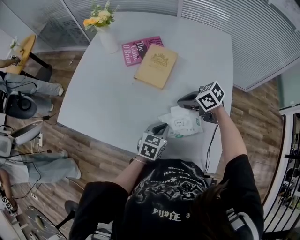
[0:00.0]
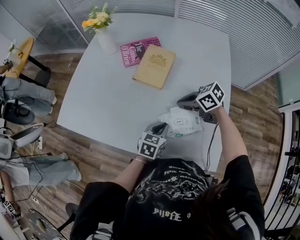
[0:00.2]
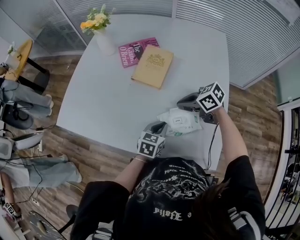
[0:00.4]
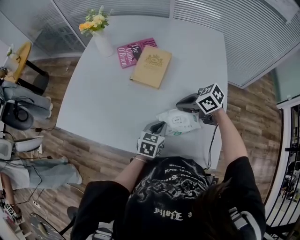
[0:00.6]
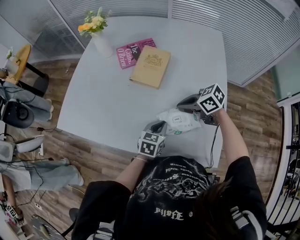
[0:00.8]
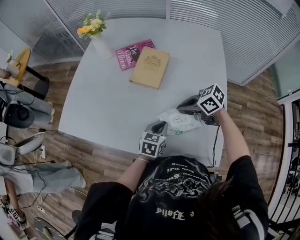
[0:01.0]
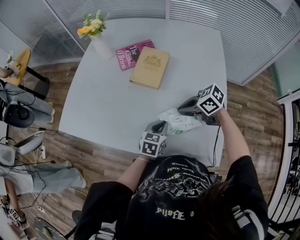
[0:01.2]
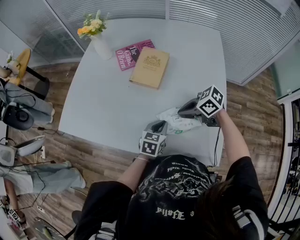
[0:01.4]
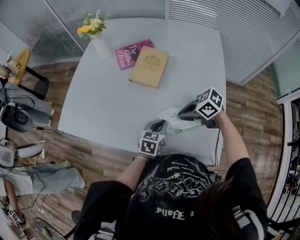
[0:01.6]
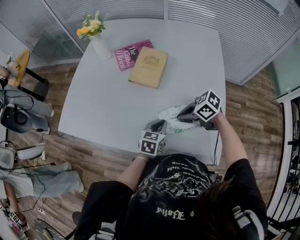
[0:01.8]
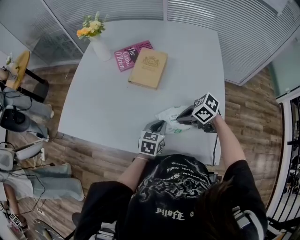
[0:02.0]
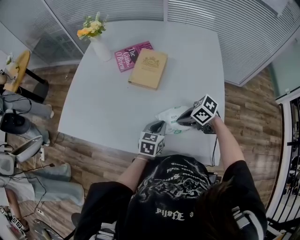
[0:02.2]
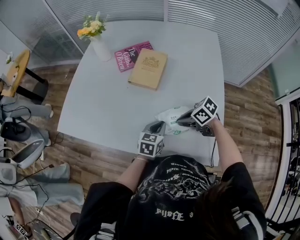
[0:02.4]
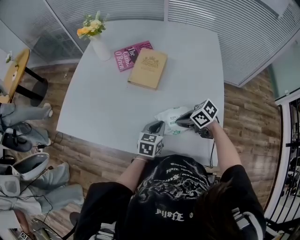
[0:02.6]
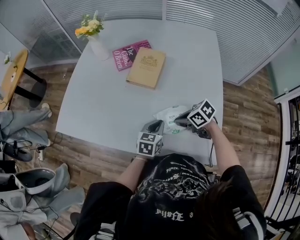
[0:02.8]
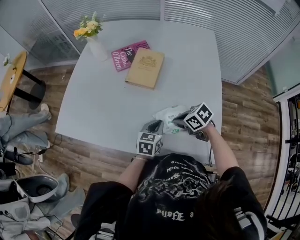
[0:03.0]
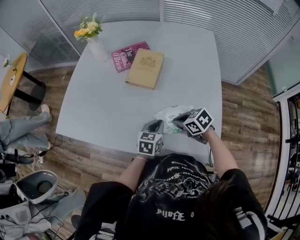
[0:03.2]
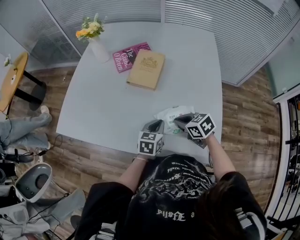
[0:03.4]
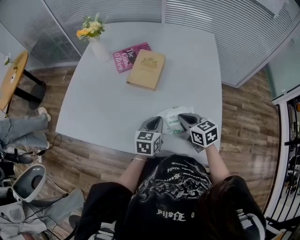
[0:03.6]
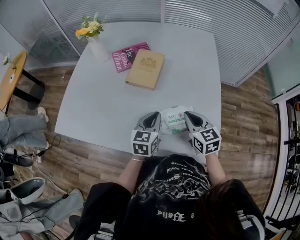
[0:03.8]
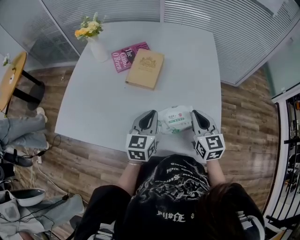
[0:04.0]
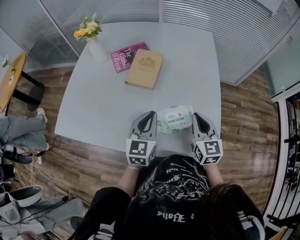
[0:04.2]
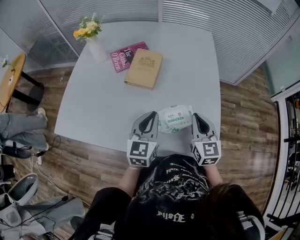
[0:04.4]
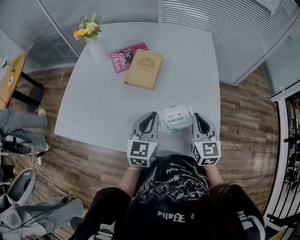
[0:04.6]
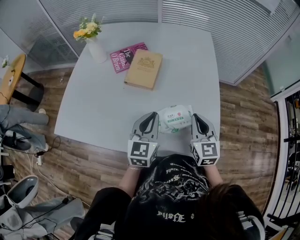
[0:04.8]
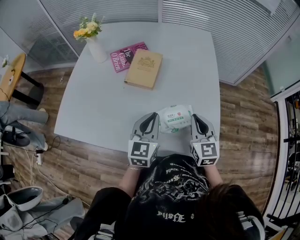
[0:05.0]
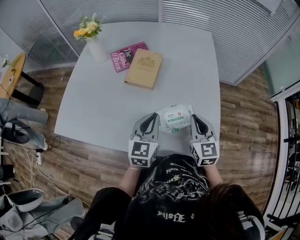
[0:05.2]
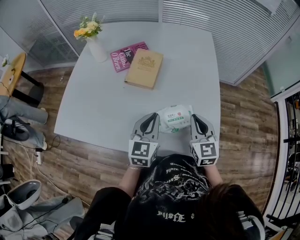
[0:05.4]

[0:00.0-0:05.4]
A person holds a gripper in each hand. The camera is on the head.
0:00.0 to 0:01.4: The right gripper ends up roughly 5 cm from where it was.
0:01.4 to 0:02.8: The right gripper shifts about 5 cm downward.
0:02.8 to 0:04.0: Both grippers move upward, some 10 cm. The right gripper turns by approximately 70 degrees.
0:04.0 to 0:05.4: The grippers move only a little.

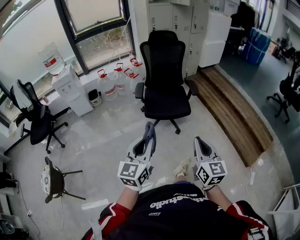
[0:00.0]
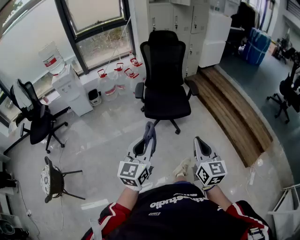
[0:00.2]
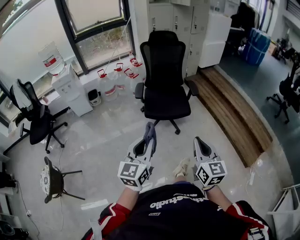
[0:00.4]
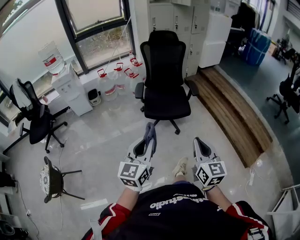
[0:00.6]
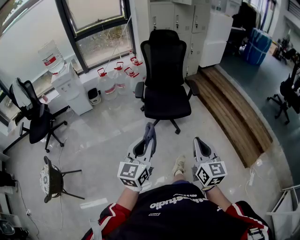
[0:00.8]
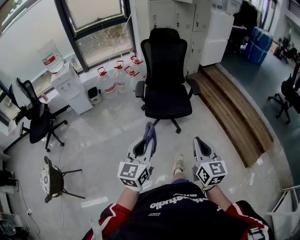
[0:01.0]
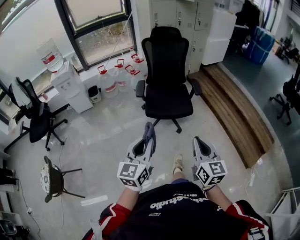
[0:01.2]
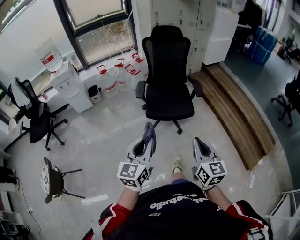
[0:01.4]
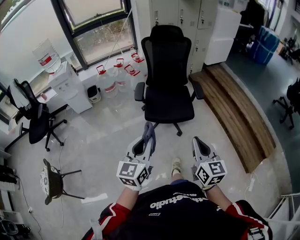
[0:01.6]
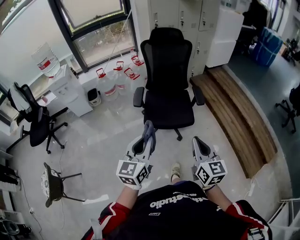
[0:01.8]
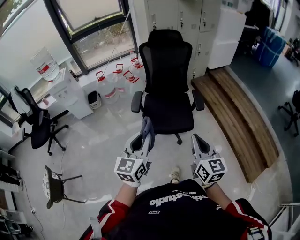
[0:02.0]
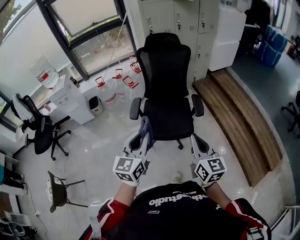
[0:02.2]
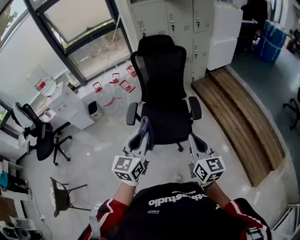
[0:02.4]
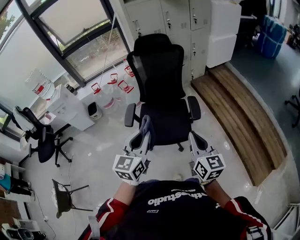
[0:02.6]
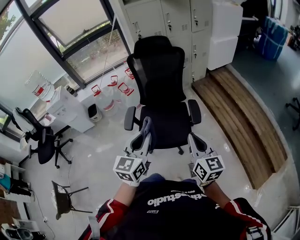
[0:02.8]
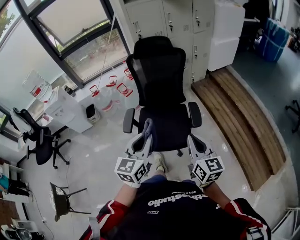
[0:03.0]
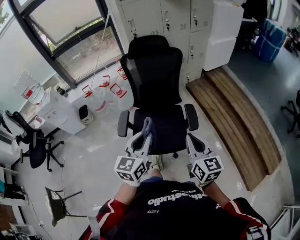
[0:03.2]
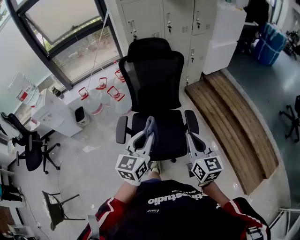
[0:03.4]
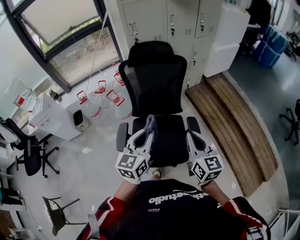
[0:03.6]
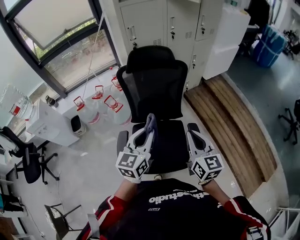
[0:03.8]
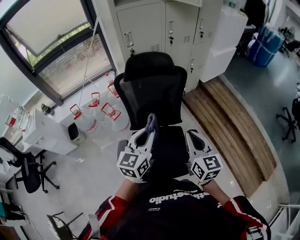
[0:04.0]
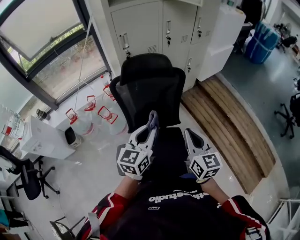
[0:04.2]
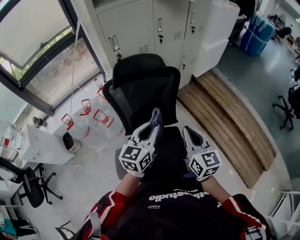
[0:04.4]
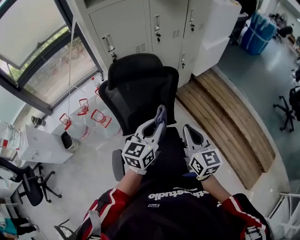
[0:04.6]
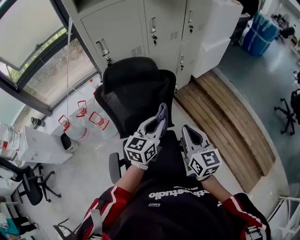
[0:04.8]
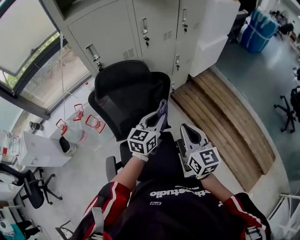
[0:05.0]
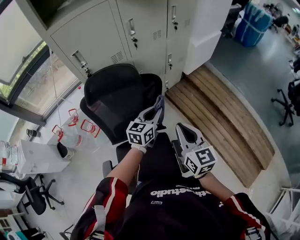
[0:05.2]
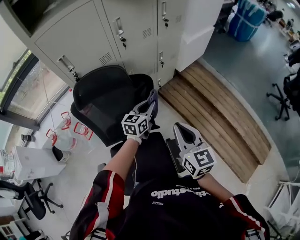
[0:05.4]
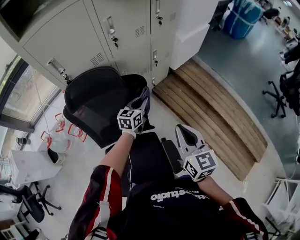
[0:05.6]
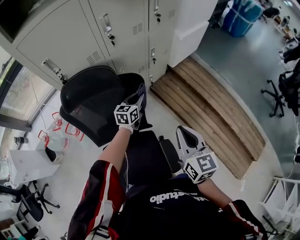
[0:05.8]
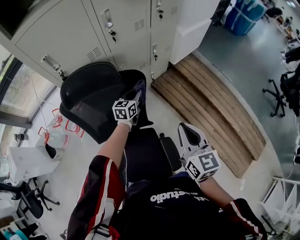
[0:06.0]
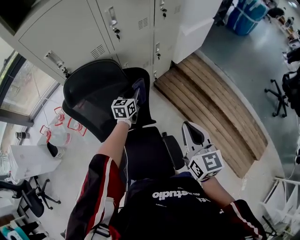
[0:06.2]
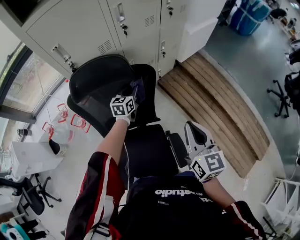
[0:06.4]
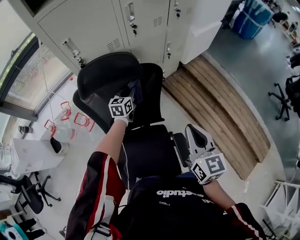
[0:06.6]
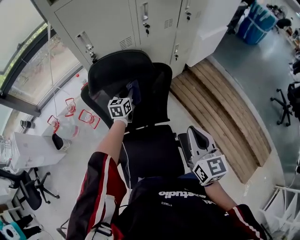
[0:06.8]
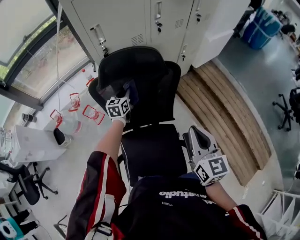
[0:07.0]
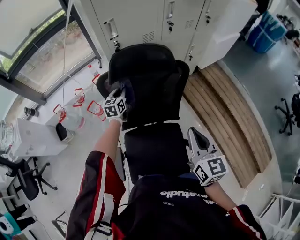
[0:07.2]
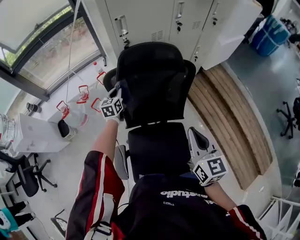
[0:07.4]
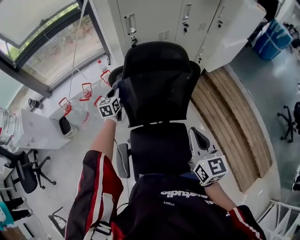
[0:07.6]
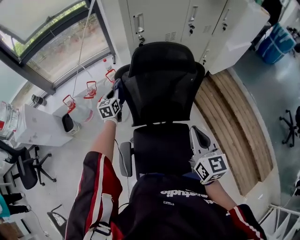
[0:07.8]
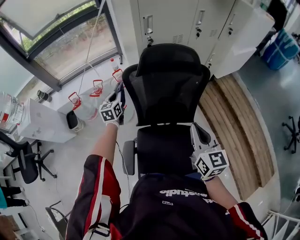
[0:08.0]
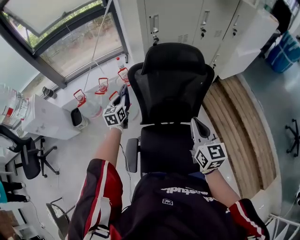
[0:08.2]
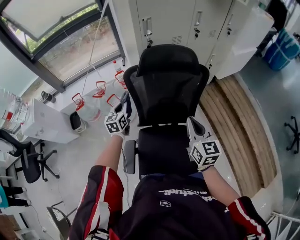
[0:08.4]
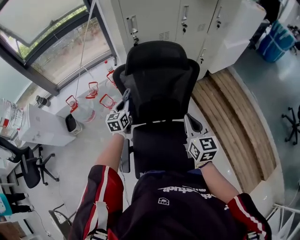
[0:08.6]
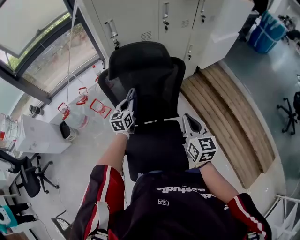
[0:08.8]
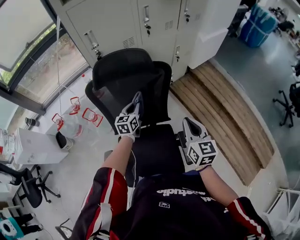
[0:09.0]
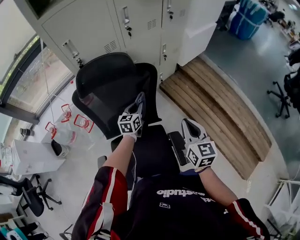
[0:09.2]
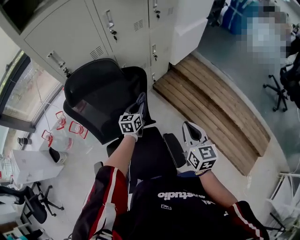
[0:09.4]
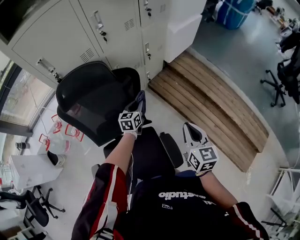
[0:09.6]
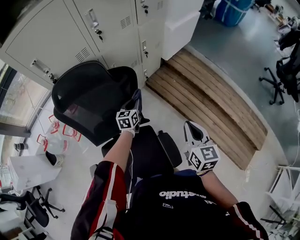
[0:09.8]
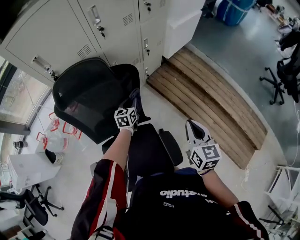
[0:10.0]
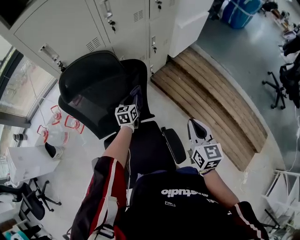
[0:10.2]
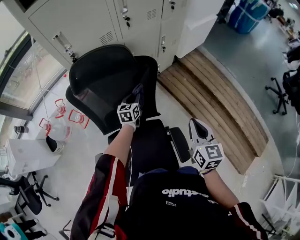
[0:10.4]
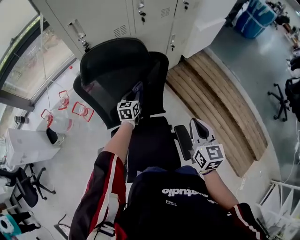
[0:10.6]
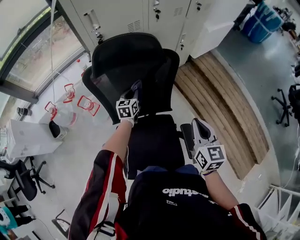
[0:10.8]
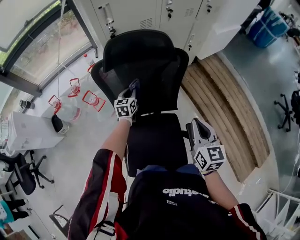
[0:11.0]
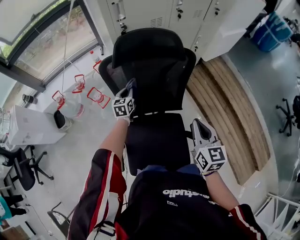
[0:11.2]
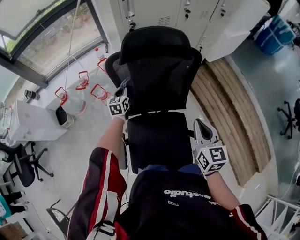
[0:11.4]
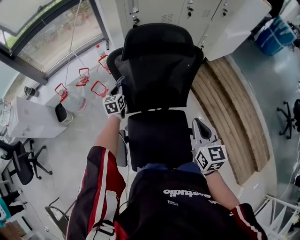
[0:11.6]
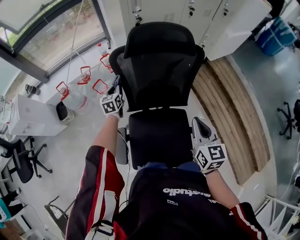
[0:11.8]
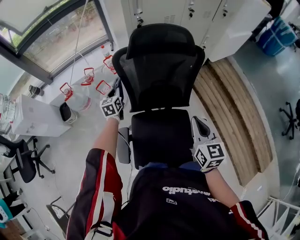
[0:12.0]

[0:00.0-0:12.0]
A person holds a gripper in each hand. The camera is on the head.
0:00.0 to 0:01.6: Both grippers travel together forward, approximately 15 cm.
0:01.6 to 0:03.0: The grippers both shift forward and to the right by approximately 40 cm.
0:03.0 to 0:04.4: Both grippers are carried forward, some 50 cm.
0:04.4 to 0:06.0: The left gripper heads forward and downward, covering roughly 50 cm, while the right gripper shifts about 25 cm forward and to the right.
0:06.0 to 0:07.6: The right gripper moves to the left and backward, some 25 cm. The left gripper goes some 50 cm to the left, and turns by approximately 30 degrees.
0:07.6 to 0:09.0: The right gripper goes about 15 cm to the right. The left gripper heads to the right, covering approximately 25 cm.
0:09.0 to 0:10.4: The left gripper is displaced forward, to the right and downward by approximately 15 cm, while the right gripper goes approximately 10 cm to the right.
0:10.4 to 0:12.0: The right gripper shifts roughly 25 cm to the left; the left gripper travels to the left by approximately 40 cm, and turns by about 20 degrees.

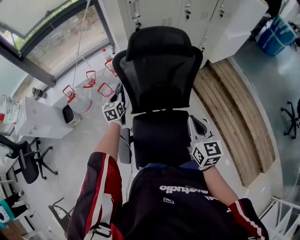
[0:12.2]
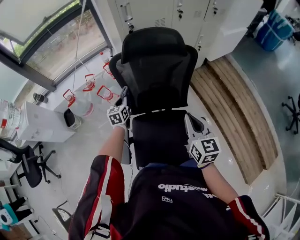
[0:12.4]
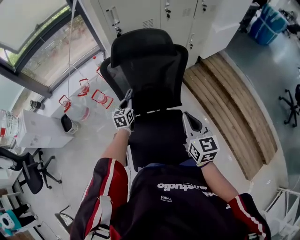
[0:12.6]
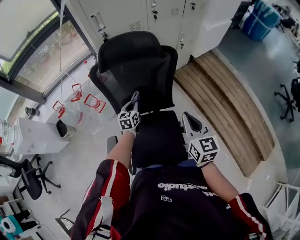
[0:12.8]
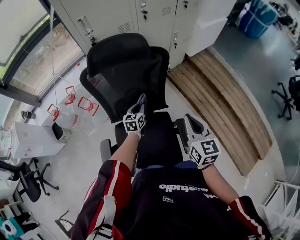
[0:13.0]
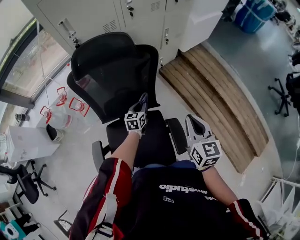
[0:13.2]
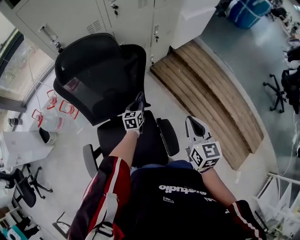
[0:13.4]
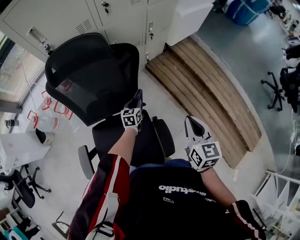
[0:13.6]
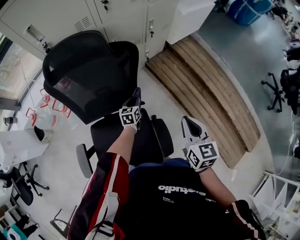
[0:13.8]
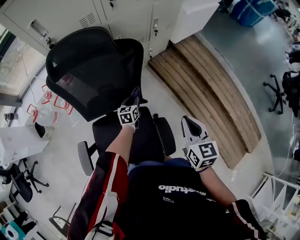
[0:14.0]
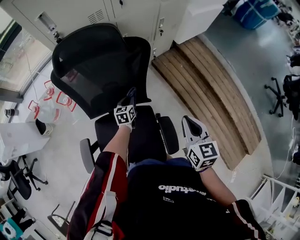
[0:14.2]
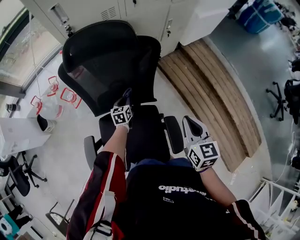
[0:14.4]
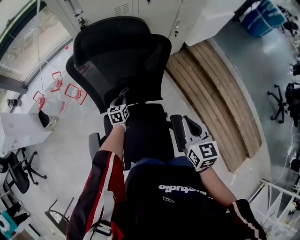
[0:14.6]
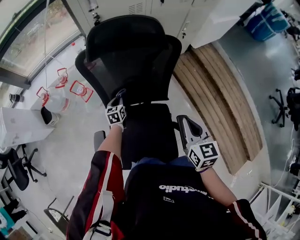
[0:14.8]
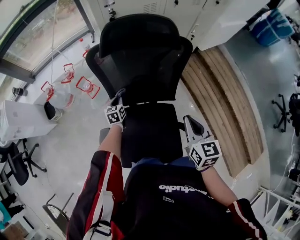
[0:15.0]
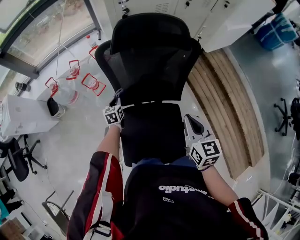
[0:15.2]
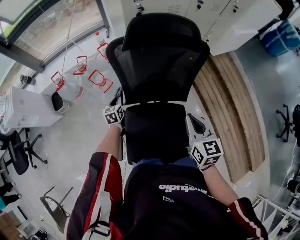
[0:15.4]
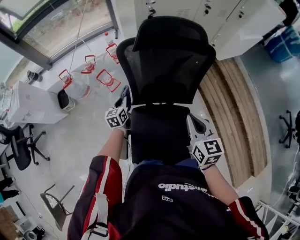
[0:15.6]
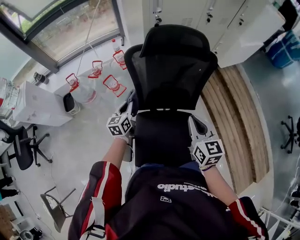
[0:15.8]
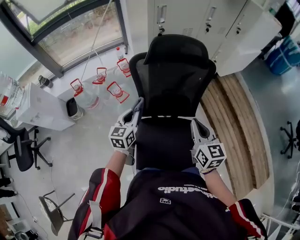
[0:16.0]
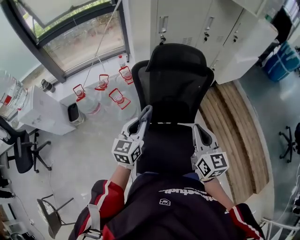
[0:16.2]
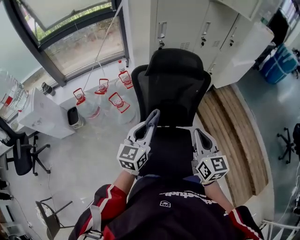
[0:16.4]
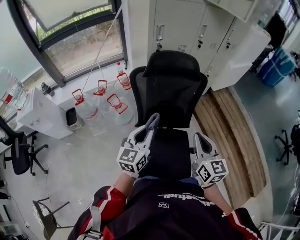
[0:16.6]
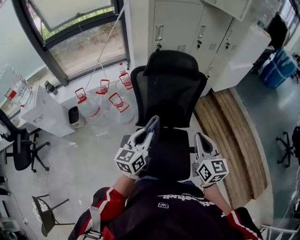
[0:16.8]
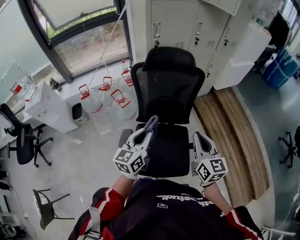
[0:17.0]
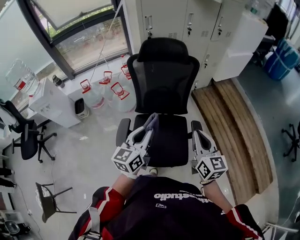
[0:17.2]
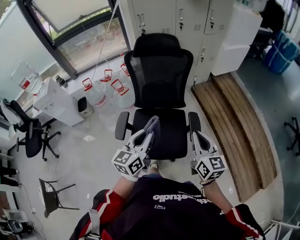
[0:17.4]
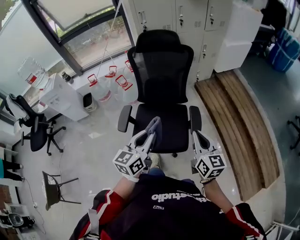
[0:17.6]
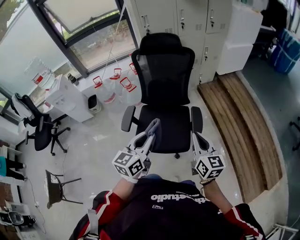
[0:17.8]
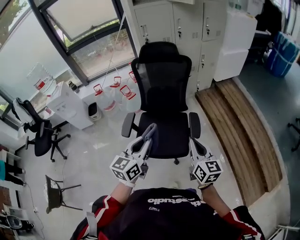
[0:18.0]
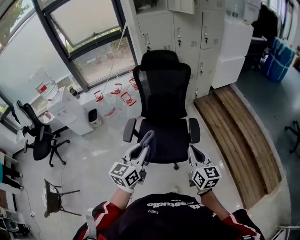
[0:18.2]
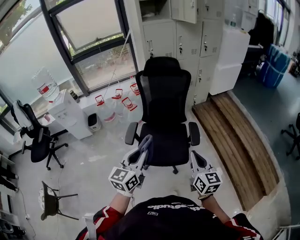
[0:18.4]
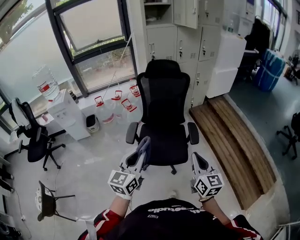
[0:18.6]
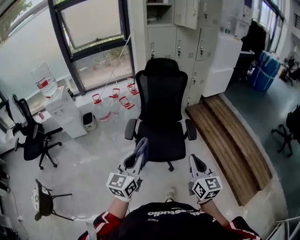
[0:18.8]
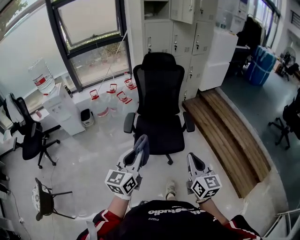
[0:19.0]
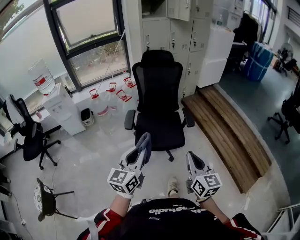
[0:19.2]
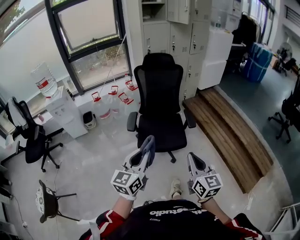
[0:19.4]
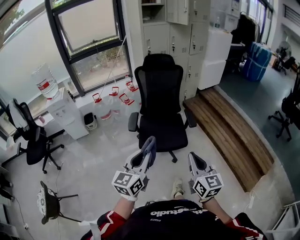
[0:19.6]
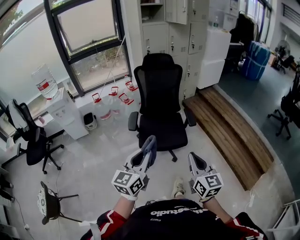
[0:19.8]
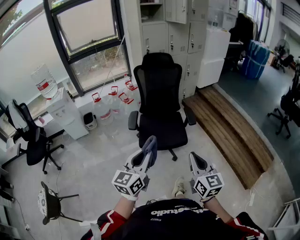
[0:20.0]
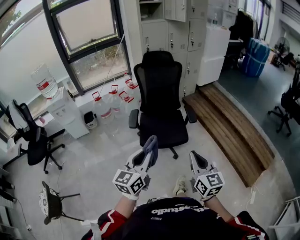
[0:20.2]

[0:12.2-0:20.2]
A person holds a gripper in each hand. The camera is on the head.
0:12.2 to 0:13.8: The right gripper heads to the right, covering some 30 cm. Meanwhile the left gripper shifts approximately 50 cm to the right, and turns by roughly 20 degrees.
0:13.8 to 0:15.4: The left gripper travels to the left by roughly 50 cm, and changes its angle by about 20 degrees. The right gripper travels to the left by some 30 cm.
0:15.4 to 0:17.0: The left gripper goes approximately 50 cm upward, backward and to the right, and rotates approximately 30 degrees. The right gripper travels backward and upward by some 25 cm.
0:17.0 to 0:18.6: The two grippers travel together, backward, roughly 50 cm.
0:18.6 to 0:20.2: The grippers both shift backward by about 20 cm.
